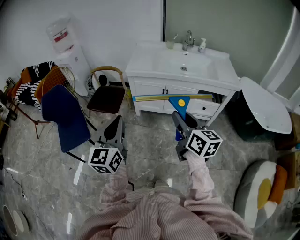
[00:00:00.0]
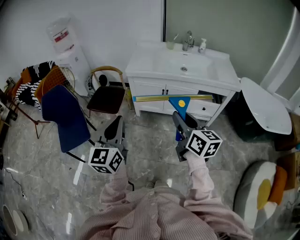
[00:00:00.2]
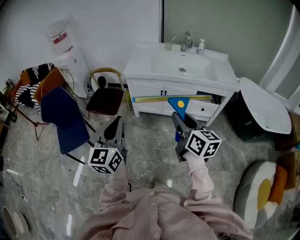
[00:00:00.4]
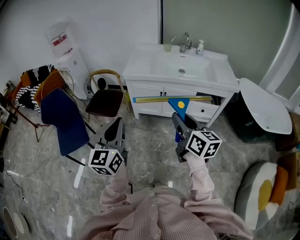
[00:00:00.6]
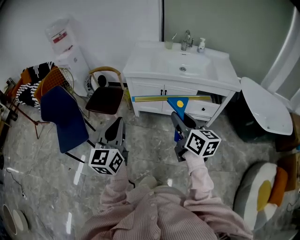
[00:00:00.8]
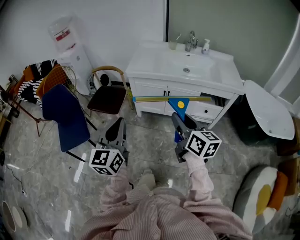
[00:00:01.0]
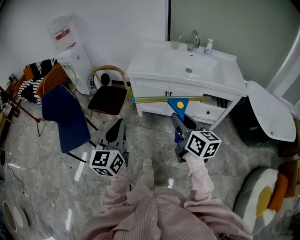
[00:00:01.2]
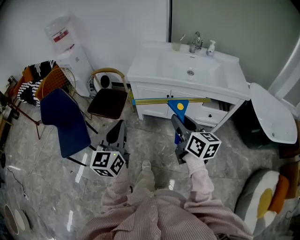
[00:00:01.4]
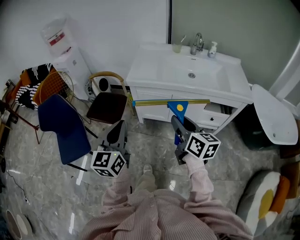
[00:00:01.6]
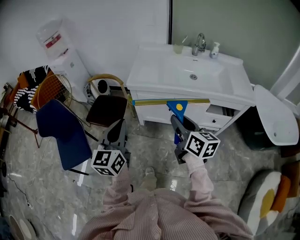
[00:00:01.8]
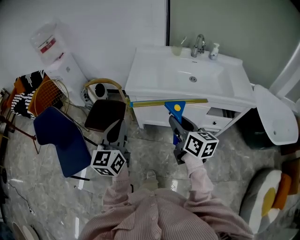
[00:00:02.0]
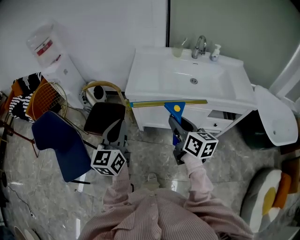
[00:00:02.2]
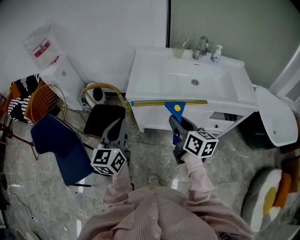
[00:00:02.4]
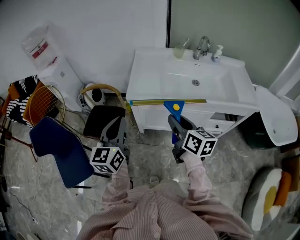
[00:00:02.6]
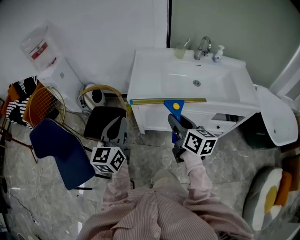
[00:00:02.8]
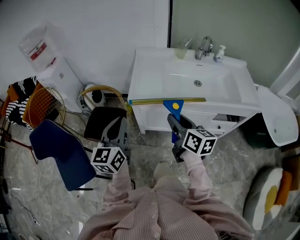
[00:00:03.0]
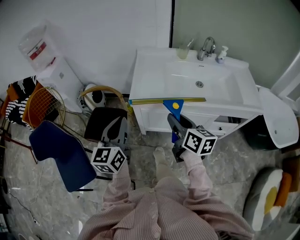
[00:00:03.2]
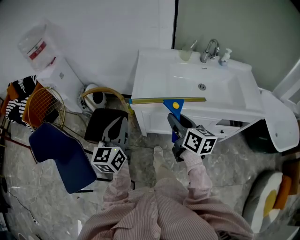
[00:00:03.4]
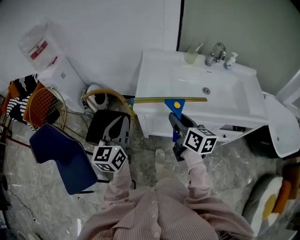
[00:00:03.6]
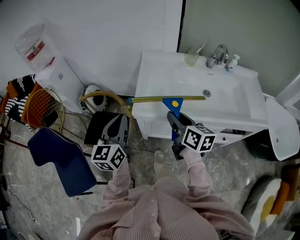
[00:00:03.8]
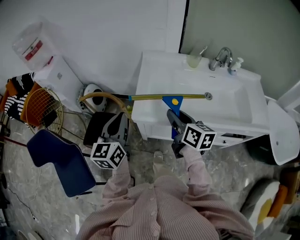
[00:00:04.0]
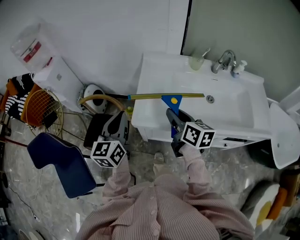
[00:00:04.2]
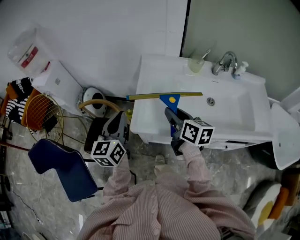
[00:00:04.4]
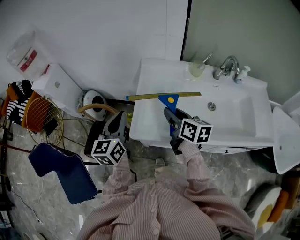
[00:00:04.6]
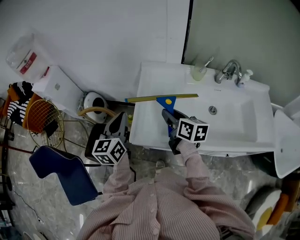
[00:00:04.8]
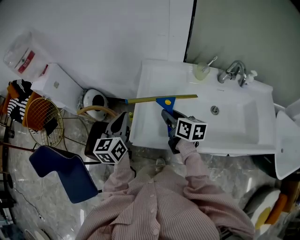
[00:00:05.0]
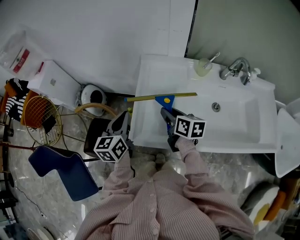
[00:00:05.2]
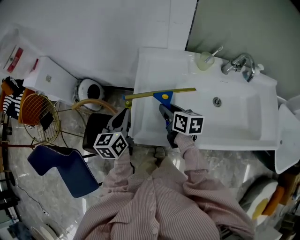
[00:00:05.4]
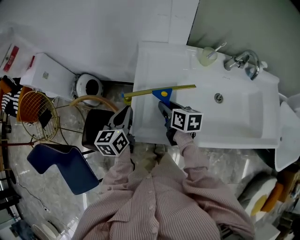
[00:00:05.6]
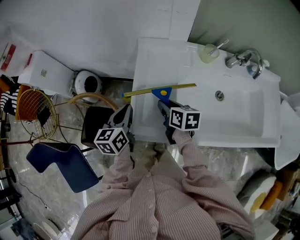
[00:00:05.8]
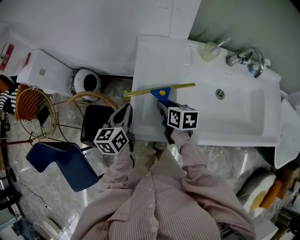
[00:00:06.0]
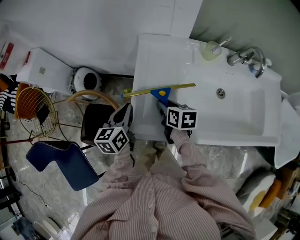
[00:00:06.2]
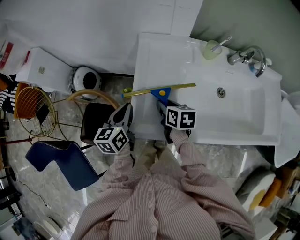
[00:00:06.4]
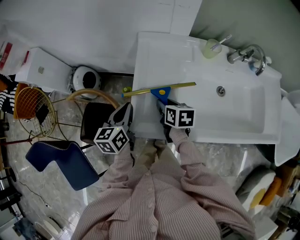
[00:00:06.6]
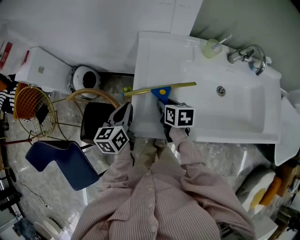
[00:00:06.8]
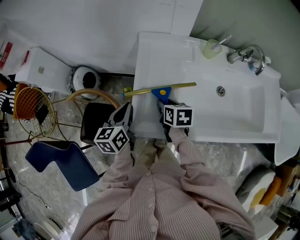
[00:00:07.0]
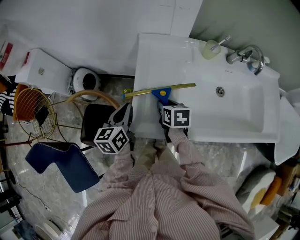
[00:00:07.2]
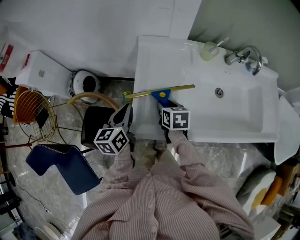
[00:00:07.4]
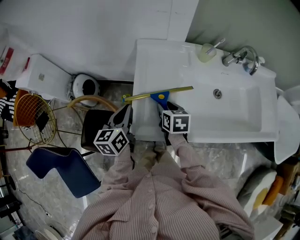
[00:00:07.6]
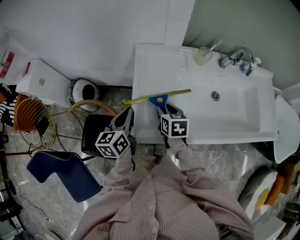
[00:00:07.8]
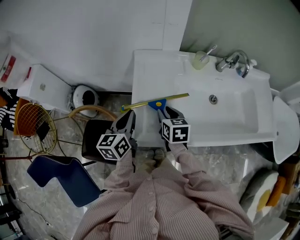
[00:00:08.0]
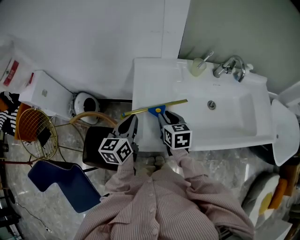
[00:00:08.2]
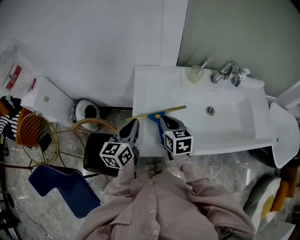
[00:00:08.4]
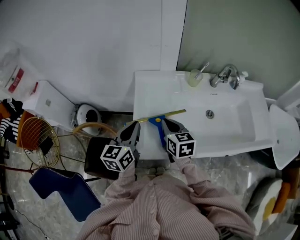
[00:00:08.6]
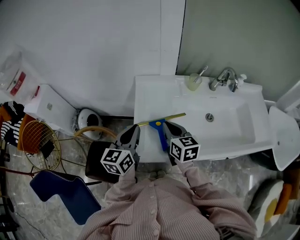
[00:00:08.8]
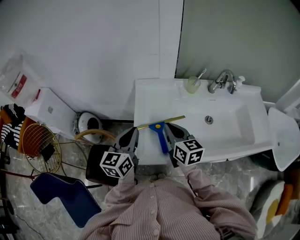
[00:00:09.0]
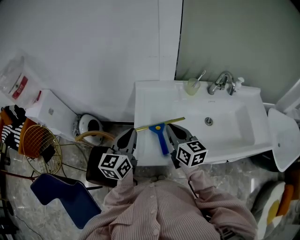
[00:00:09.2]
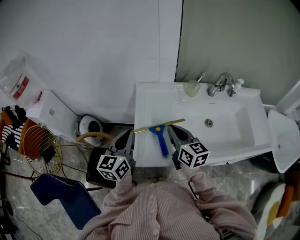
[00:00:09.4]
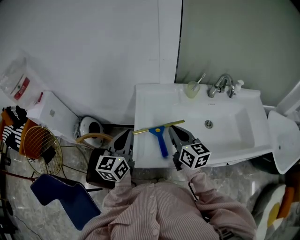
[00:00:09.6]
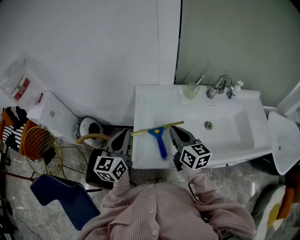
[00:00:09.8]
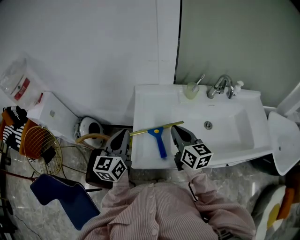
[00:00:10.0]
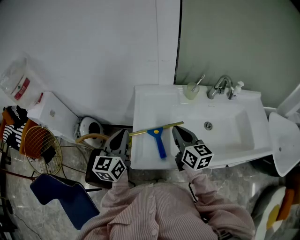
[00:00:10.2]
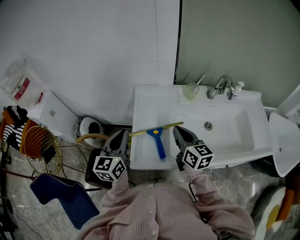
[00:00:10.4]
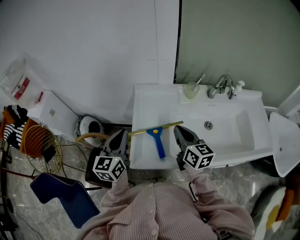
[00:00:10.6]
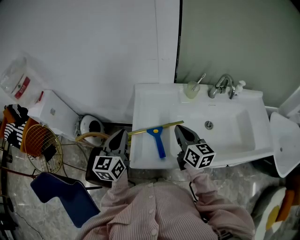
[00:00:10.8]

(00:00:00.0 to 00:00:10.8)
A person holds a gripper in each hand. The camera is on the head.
00:00:00.0 - 00:00:01.6: The two grippers go approximately 15 cm forward.
00:00:01.6 - 00:00:03.0: Both grippers move forward, about 20 cm.
00:00:03.0 - 00:00:04.6: The grippers both shift forward by roughly 30 cm.
00:00:04.6 - 00:00:06.2: Both grippers move downward and forward, about 15 cm. The right gripper swivels about 20 degrees, while the left gripper rotates roughly 20 degrees.
00:00:06.2 - 00:00:07.8: The grippers make only small movements.
00:00:07.8 - 00:00:09.2: Both grippers travel together upward, about 10 cm. The right gripper points its fingers about 30 degrees further upward, and closes its fingers.
00:00:09.2 - 00:00:10.8: The right gripper shifts some 5 cm to the right.

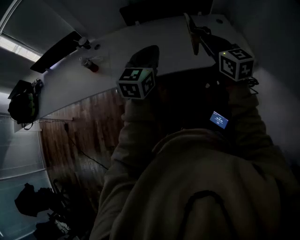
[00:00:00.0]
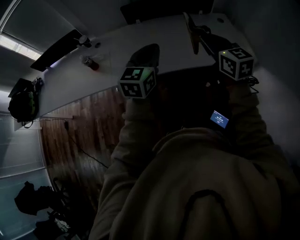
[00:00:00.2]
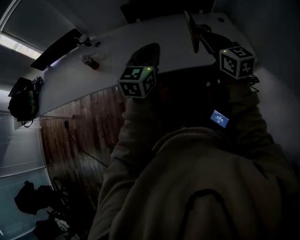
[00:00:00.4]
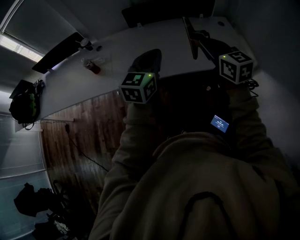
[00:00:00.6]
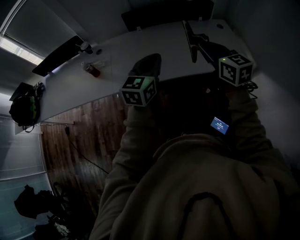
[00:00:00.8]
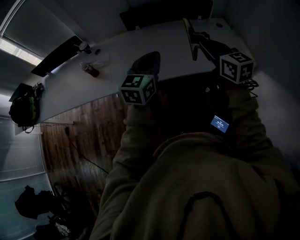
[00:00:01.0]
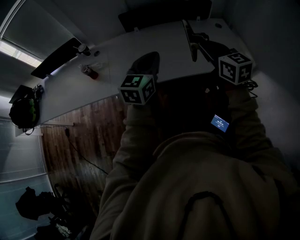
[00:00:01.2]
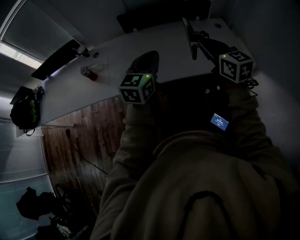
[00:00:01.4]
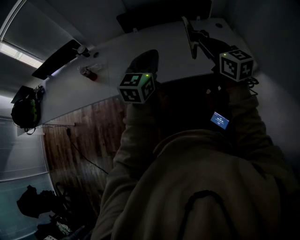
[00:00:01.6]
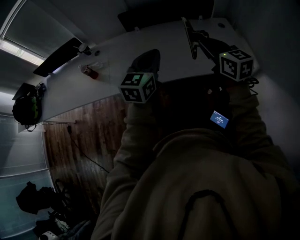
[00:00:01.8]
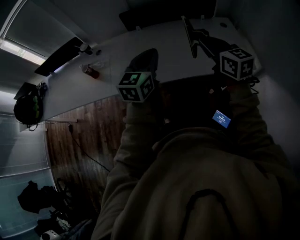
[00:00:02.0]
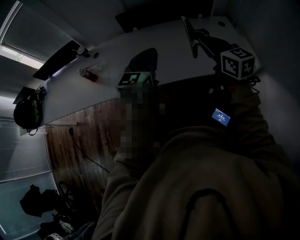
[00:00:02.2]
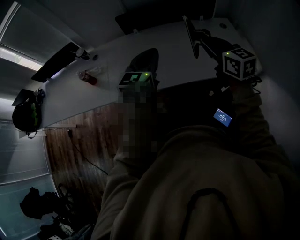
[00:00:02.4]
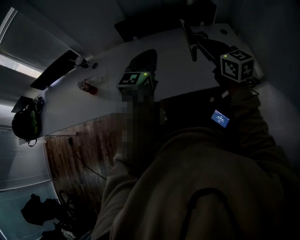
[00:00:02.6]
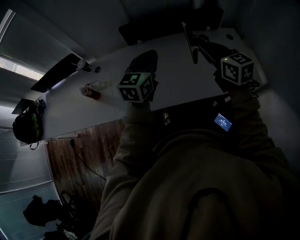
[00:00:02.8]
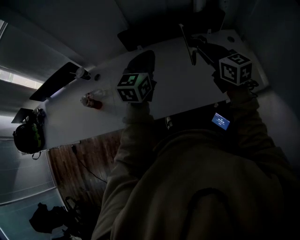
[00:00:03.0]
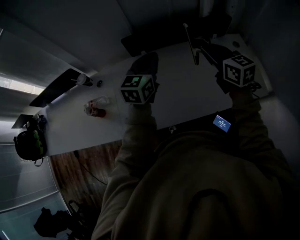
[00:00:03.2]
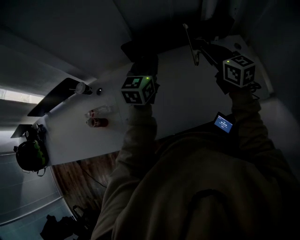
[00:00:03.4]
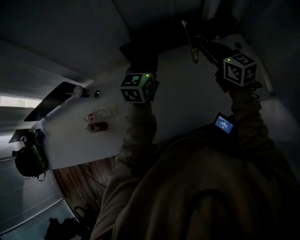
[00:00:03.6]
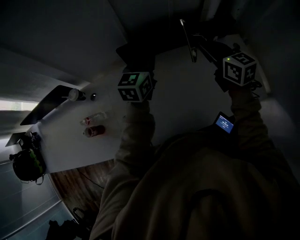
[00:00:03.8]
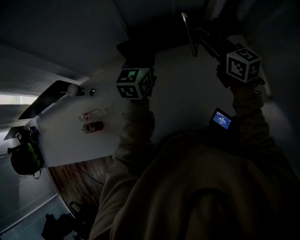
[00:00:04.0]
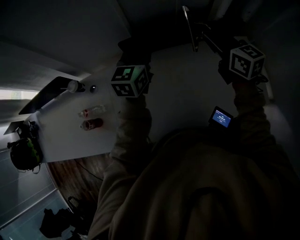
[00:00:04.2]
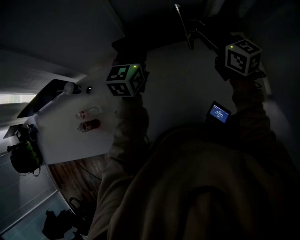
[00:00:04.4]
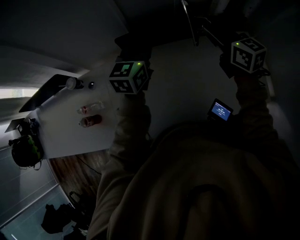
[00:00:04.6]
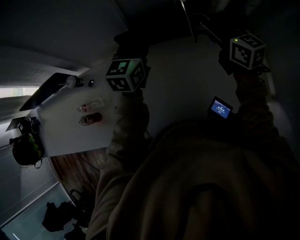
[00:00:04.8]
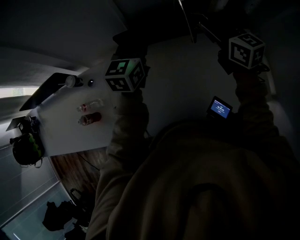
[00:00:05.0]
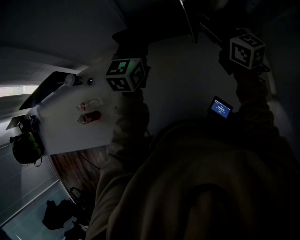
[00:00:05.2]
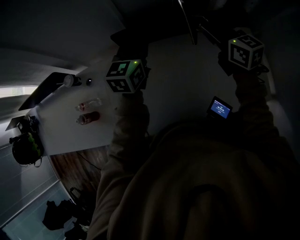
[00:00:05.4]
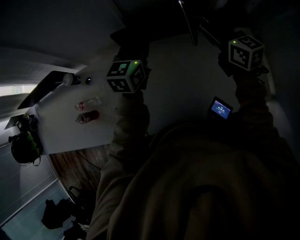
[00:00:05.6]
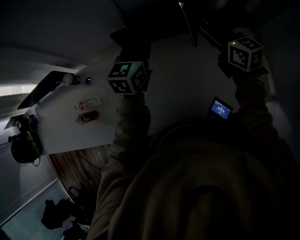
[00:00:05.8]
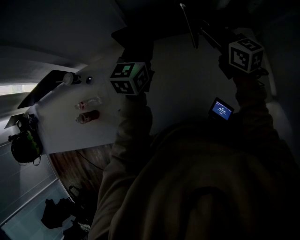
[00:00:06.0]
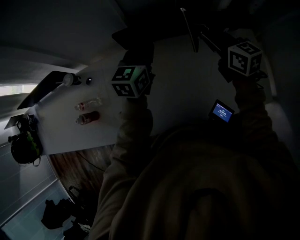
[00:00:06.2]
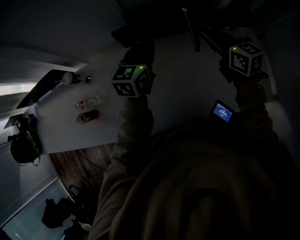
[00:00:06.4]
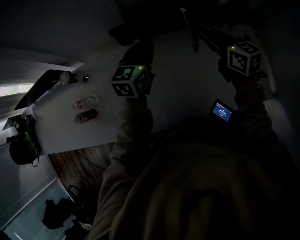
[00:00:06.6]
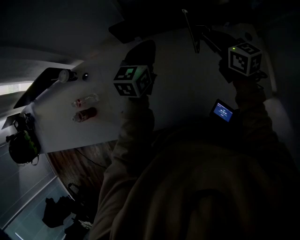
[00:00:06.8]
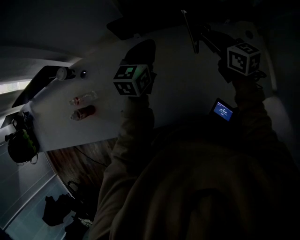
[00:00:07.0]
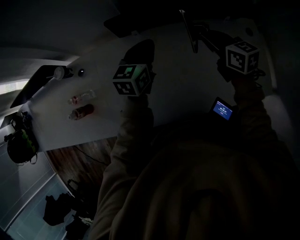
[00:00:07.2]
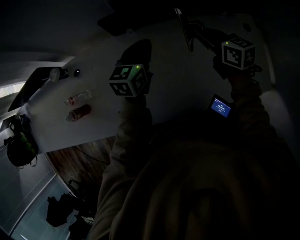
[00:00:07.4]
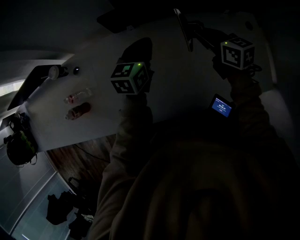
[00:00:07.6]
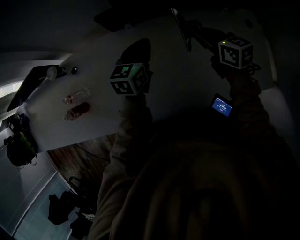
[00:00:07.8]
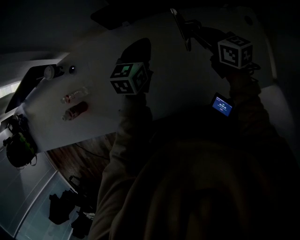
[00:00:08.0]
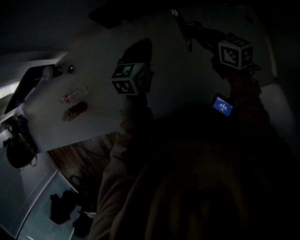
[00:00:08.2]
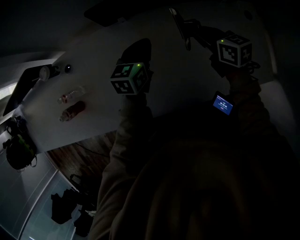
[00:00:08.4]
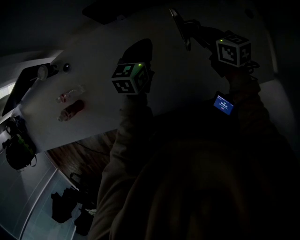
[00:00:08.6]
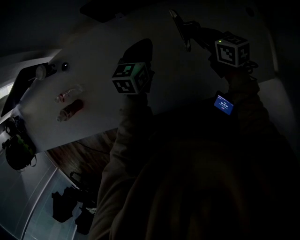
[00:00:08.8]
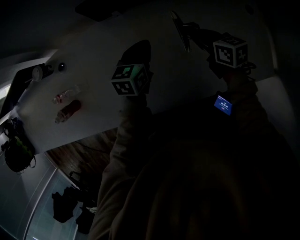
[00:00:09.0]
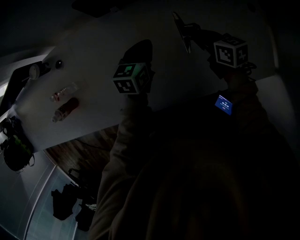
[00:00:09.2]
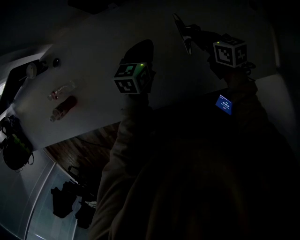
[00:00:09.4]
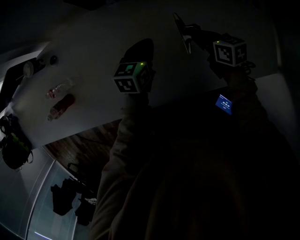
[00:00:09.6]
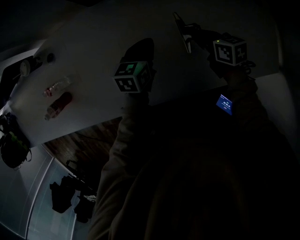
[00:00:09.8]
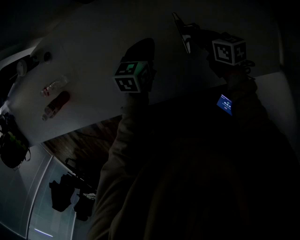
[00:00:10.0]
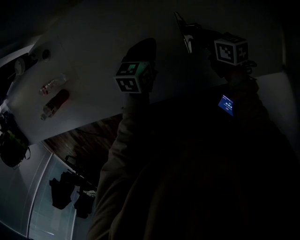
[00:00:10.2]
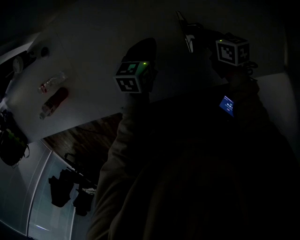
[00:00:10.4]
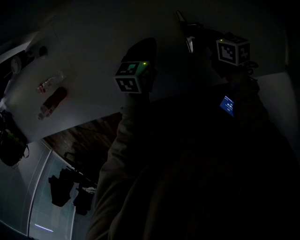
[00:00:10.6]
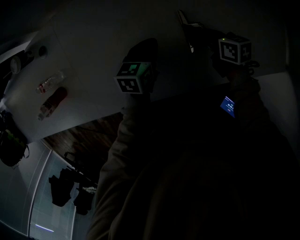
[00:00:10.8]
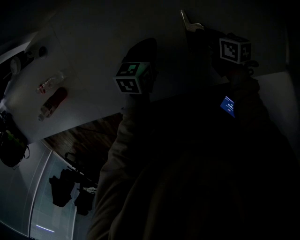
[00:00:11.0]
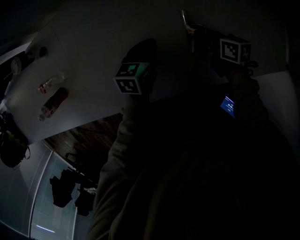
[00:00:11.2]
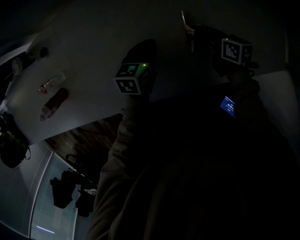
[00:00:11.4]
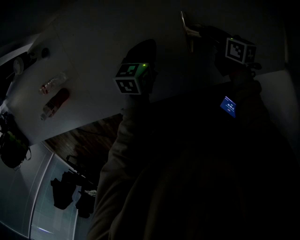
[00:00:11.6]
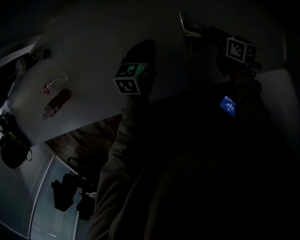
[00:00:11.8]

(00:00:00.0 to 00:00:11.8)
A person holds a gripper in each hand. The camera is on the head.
00:00:00.0 - 00:00:01.4: There are only small adjustments of the grippers.
00:00:01.4 - 00:00:03.0: The grippers both shift forward by some 25 cm.
00:00:03.0 - 00:00:04.4: The grippers both shift forward by approximately 20 cm.
00:00:04.4 - 00:00:06.0: The right gripper goes roughly 5 cm downward.
00:00:06.0 - 00:00:07.4: The two grippers go some 10 cm downward.
00:00:07.4 - 00:00:08.8: Both grippers travel together downward, about 10 cm.
00:00:08.8 - 00:00:10.4: The grippers both shift downward and backward by approximately 15 cm.
00:00:10.4 - 00:00:11.8: The right gripper moves to the right, about 5 cm, and opens its fingers.

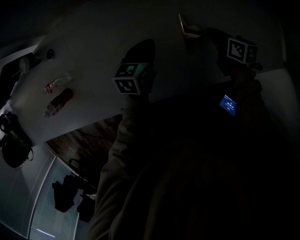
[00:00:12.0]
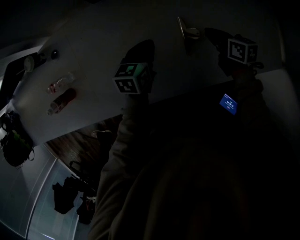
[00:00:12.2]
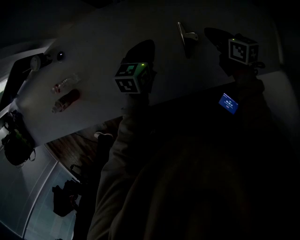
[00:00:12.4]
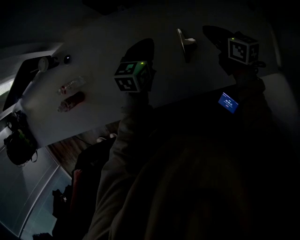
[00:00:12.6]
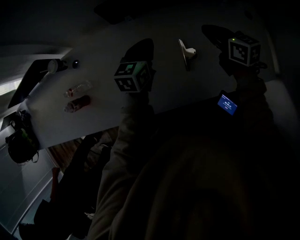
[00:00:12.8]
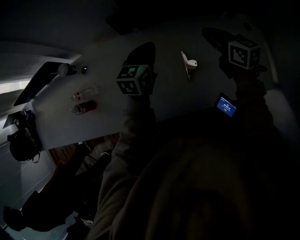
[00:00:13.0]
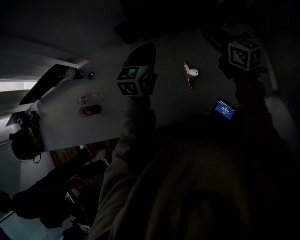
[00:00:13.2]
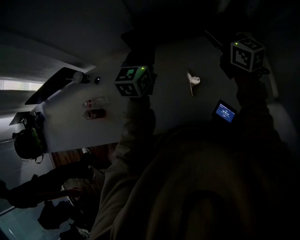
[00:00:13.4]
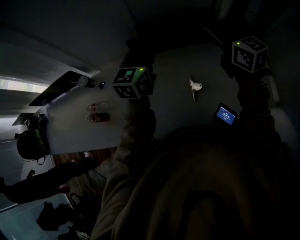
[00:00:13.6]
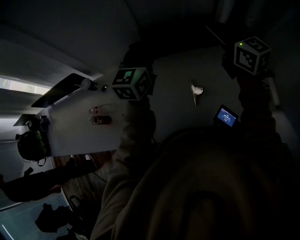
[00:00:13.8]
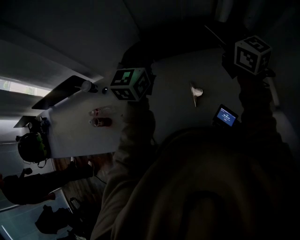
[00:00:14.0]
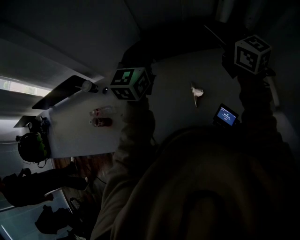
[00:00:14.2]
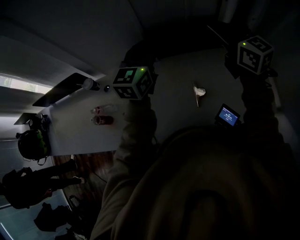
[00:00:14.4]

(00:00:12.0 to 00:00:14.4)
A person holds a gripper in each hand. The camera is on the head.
00:00:12.0 - 00:00:13.2: Both grippers travel together upward, roughly 30 cm. The right gripper changes its angle by roughly 40 degrees. The left gripper changes its angle by approximately 30 degrees.
00:00:13.2 - 00:00:14.4: The grippers both shift upward by roughly 15 cm.
